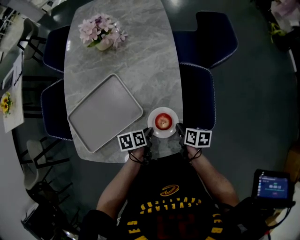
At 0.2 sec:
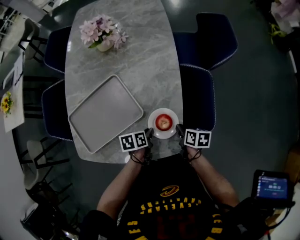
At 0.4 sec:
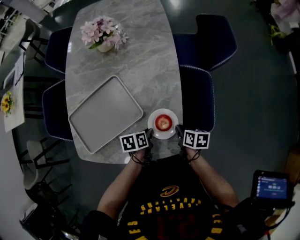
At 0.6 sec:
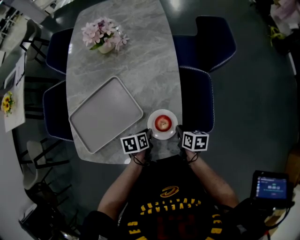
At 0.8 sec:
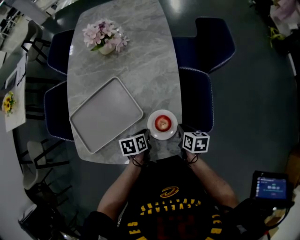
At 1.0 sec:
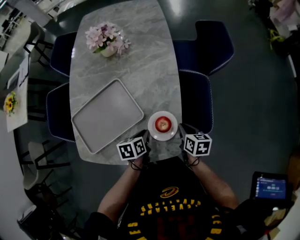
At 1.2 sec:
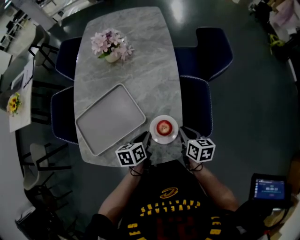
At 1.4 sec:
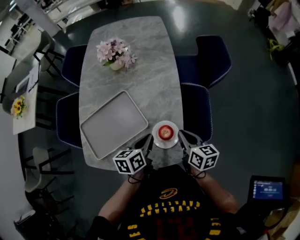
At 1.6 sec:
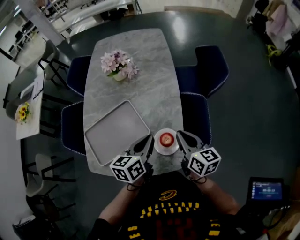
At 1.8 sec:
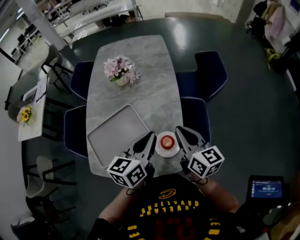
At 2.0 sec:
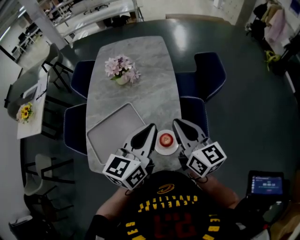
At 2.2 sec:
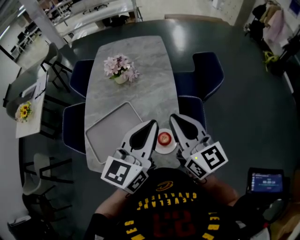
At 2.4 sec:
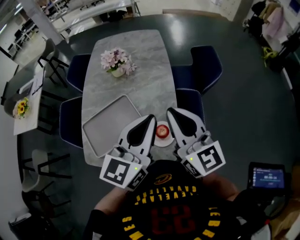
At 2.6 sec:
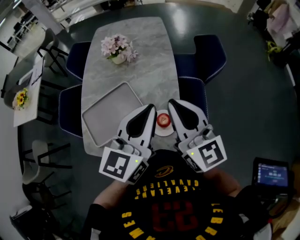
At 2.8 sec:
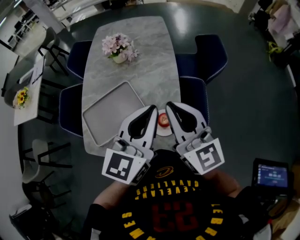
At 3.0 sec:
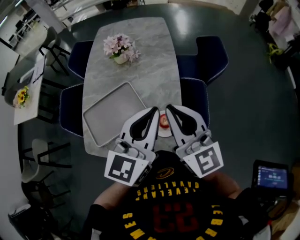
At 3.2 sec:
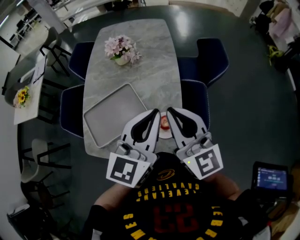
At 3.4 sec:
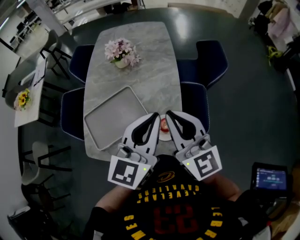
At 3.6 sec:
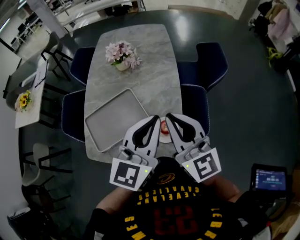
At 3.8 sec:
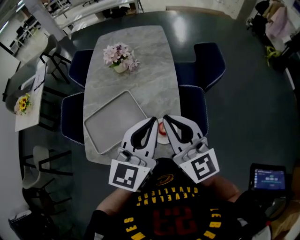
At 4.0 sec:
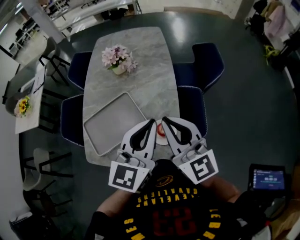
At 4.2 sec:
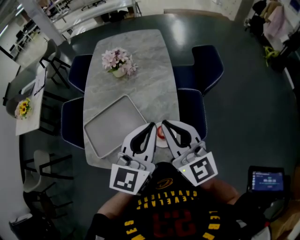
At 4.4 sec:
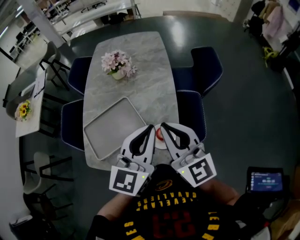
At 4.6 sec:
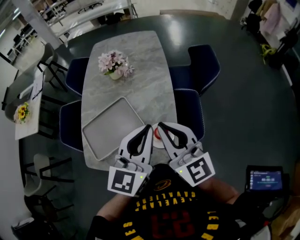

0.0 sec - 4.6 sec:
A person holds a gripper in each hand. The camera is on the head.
0.0 sec - 1.6 sec: Both grippers move upward, about 25 cm. The left gripper rotates some 40 degrees. The right gripper tilts its fingers some 30 degrees upward.
1.6 sec - 3.0 sec: Both grippers travel together upward, some 20 cm. The right gripper rotates roughly 40 degrees; the left gripper swivels roughly 40 degrees.
3.0 sec - 4.6 sec: The grippers make only small movements.

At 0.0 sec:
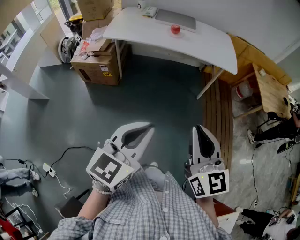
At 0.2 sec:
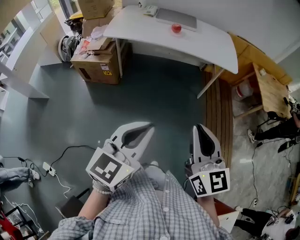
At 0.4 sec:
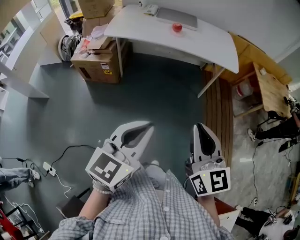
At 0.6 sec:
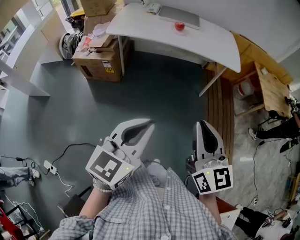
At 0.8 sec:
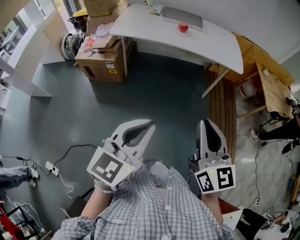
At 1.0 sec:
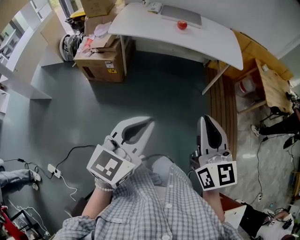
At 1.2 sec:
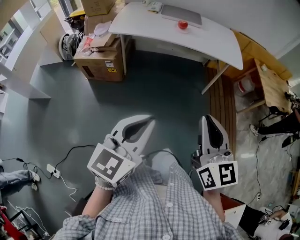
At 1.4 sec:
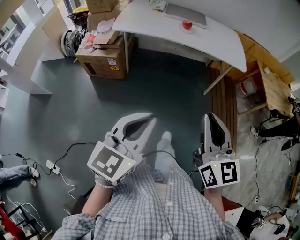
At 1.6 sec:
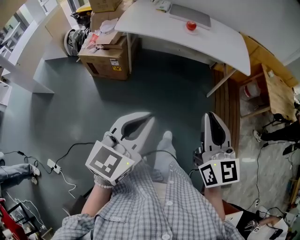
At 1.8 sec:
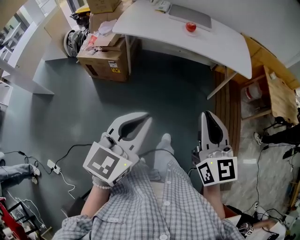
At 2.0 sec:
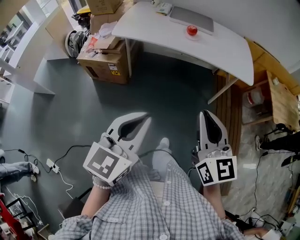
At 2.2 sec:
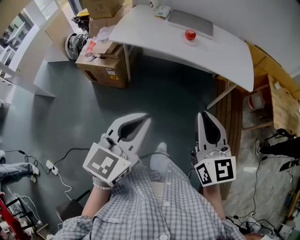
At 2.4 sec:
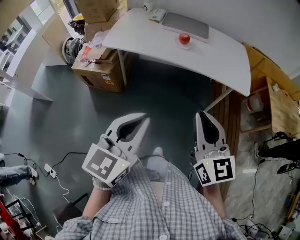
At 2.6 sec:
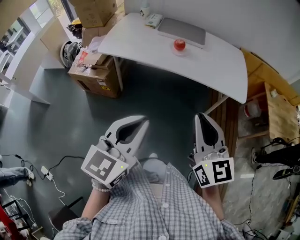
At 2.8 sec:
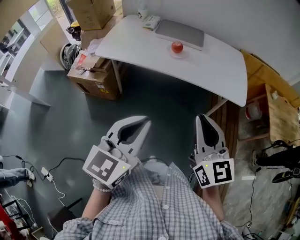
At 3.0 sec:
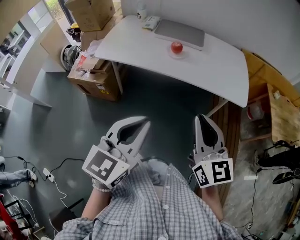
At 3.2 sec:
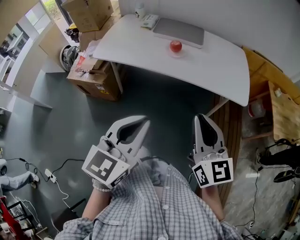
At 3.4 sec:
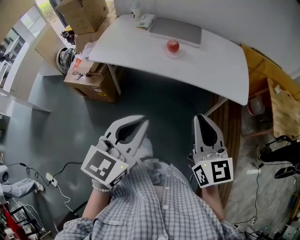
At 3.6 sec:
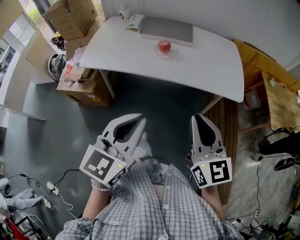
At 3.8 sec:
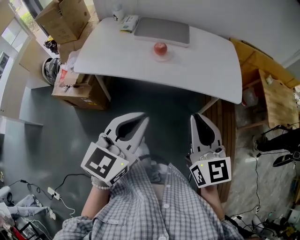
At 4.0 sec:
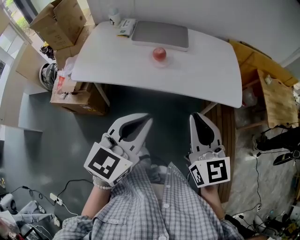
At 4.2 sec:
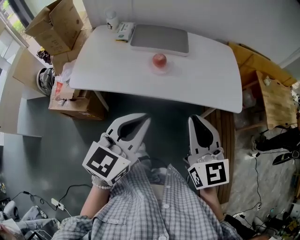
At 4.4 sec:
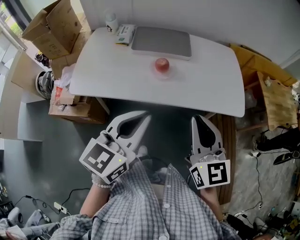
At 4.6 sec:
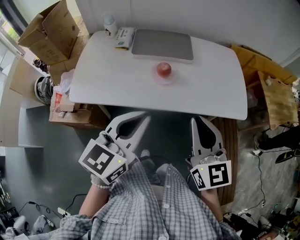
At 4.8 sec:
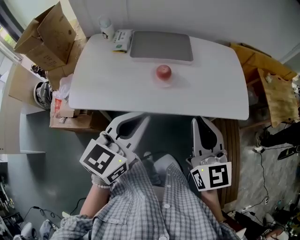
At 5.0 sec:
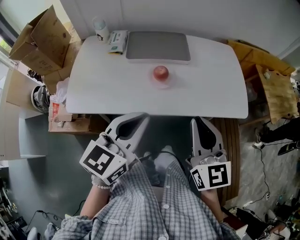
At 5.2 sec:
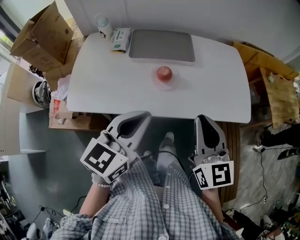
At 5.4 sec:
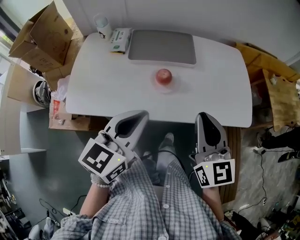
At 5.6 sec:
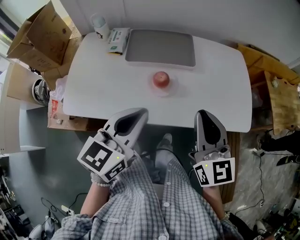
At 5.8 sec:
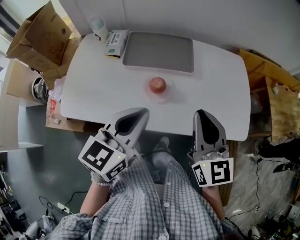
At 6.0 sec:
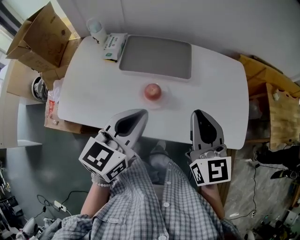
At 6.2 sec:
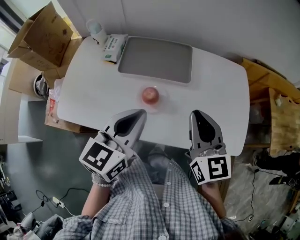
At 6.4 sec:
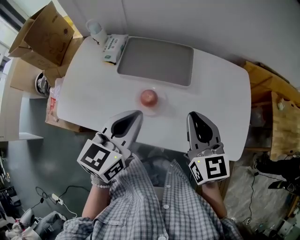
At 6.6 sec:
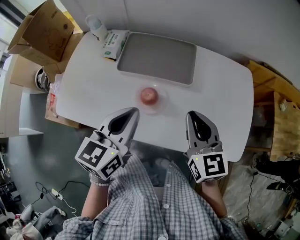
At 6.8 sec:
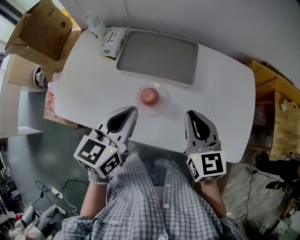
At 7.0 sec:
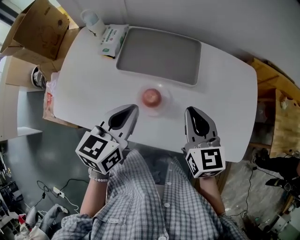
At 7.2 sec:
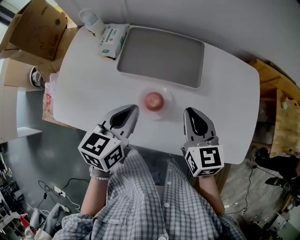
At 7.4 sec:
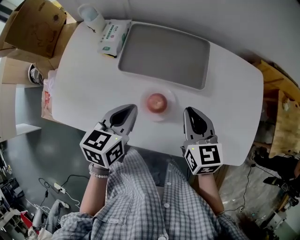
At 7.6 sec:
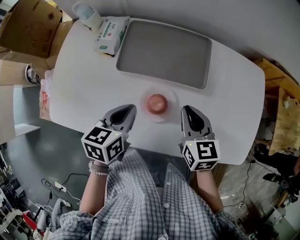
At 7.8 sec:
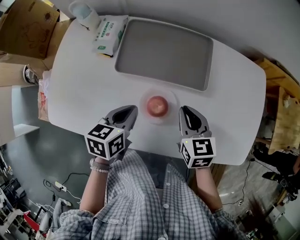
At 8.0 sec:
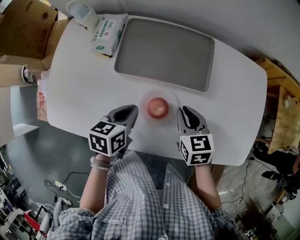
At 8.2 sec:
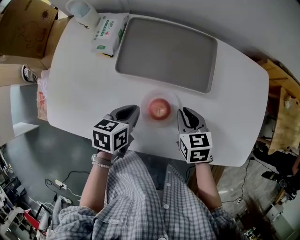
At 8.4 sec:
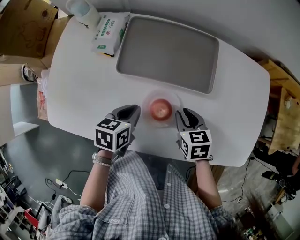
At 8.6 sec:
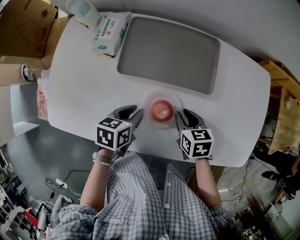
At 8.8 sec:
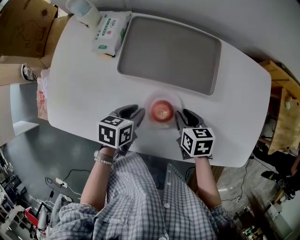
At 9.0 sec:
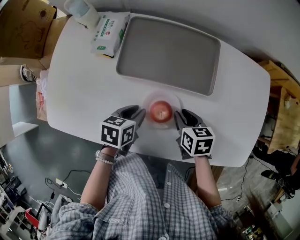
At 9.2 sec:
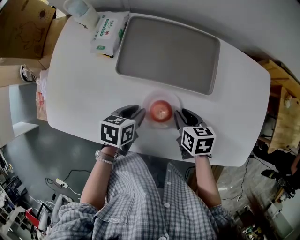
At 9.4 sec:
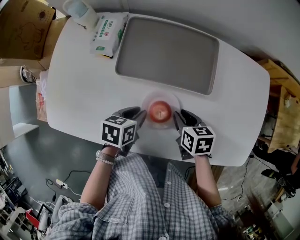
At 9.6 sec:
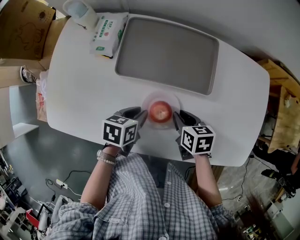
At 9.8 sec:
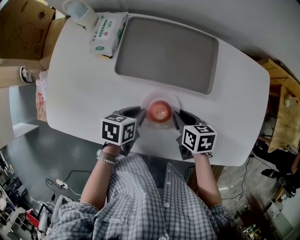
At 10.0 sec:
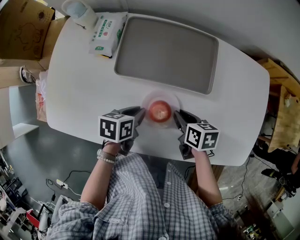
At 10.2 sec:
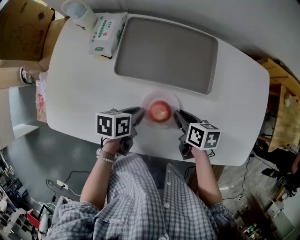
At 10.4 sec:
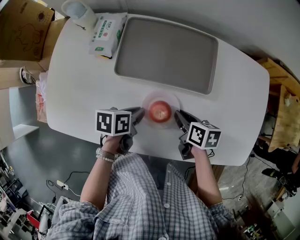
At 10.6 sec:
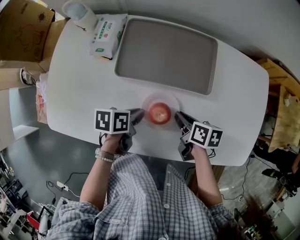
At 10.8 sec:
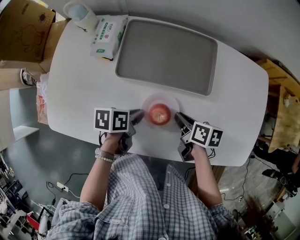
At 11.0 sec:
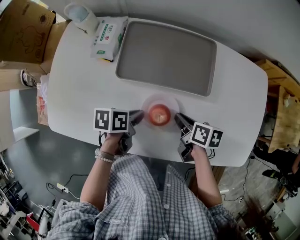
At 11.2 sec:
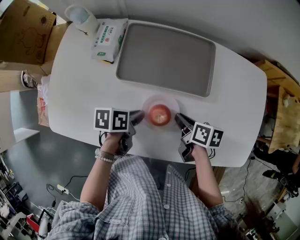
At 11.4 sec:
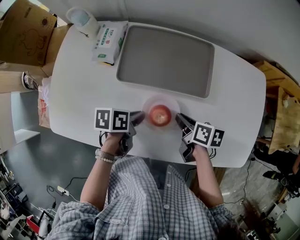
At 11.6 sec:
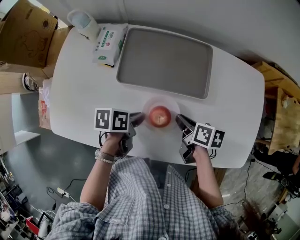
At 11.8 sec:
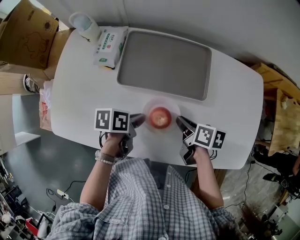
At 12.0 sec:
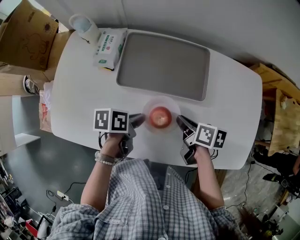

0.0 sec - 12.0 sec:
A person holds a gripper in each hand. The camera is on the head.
0.0 sec - 1.6 sec: The two grippers go roughly 10 cm to the left.
1.6 sec - 3.0 sec: Both grippers move forward and to the right, some 25 cm.
3.0 sec - 4.4 sec: The grippers both shift forward by approximately 20 cm.
4.4 sec - 6.0 sec: Both grippers travel together forward, some 20 cm.
6.0 sec - 7.6 sec: The two grippers go roughly 20 cm downward and forward. The left gripper rotates roughly 30 degrees. Meanwhile the right gripper changes its angle by roughly 30 degrees.
7.6 sec - 9.0 sec: Both grippers move downward, approximately 10 cm. The left gripper opens, while the right gripper rotates some 30 degrees.
9.0 sec - 10.4 sec: There are only small adjustments of the grippers.
10.4 sec - 12.0 sec: There are only small adjustments of the grippers.

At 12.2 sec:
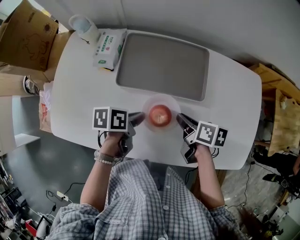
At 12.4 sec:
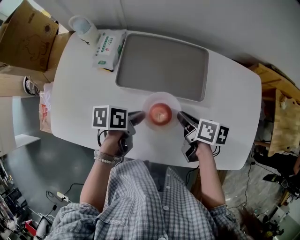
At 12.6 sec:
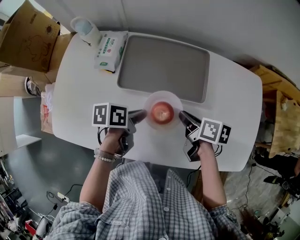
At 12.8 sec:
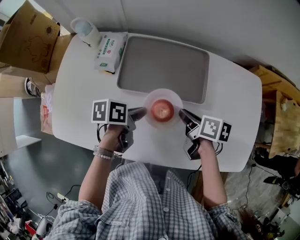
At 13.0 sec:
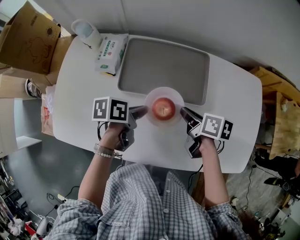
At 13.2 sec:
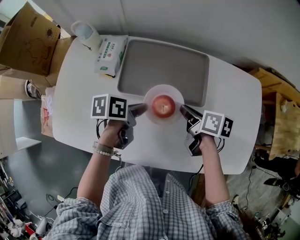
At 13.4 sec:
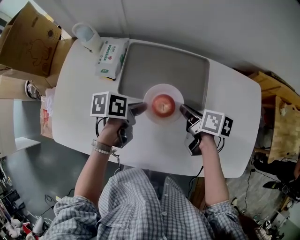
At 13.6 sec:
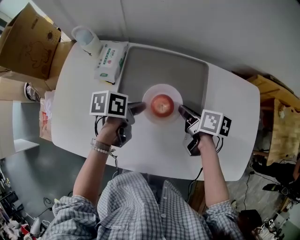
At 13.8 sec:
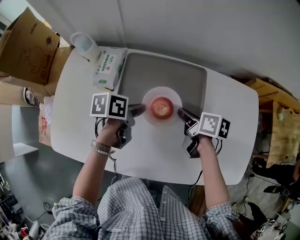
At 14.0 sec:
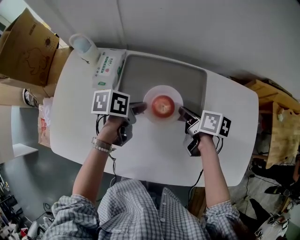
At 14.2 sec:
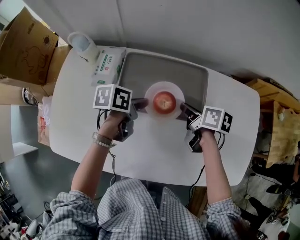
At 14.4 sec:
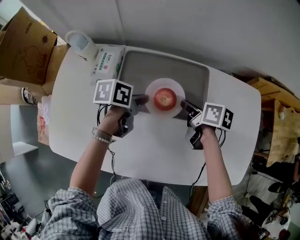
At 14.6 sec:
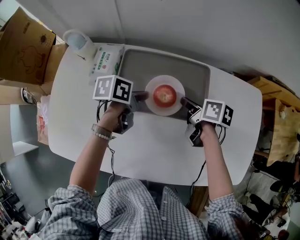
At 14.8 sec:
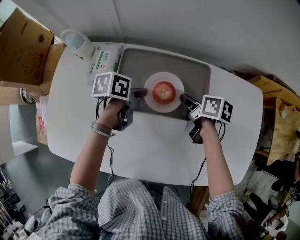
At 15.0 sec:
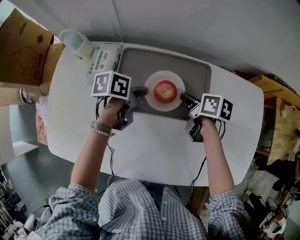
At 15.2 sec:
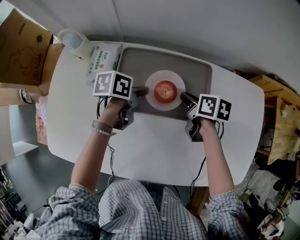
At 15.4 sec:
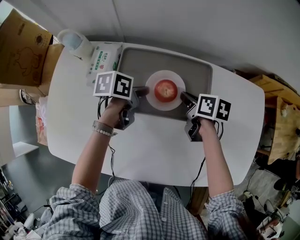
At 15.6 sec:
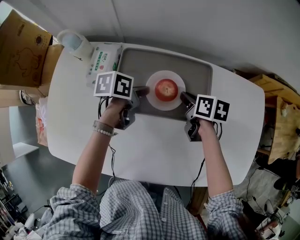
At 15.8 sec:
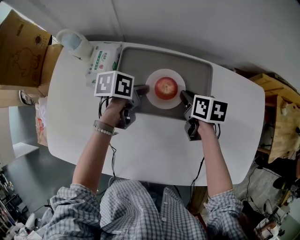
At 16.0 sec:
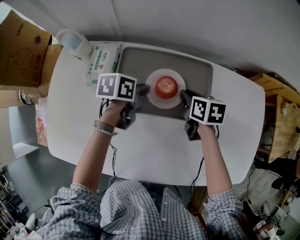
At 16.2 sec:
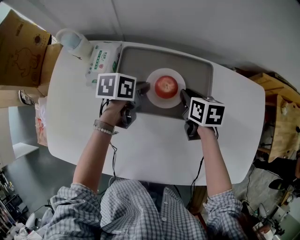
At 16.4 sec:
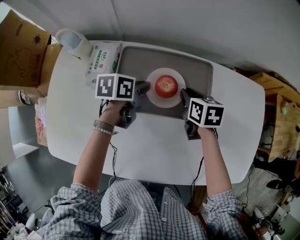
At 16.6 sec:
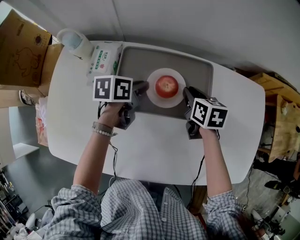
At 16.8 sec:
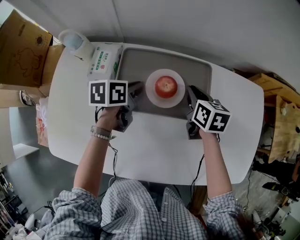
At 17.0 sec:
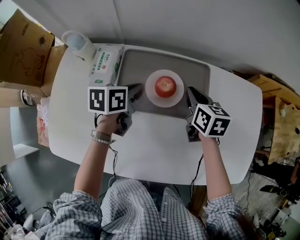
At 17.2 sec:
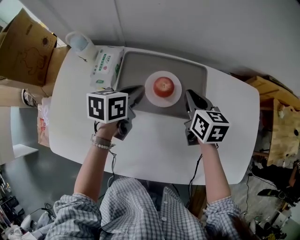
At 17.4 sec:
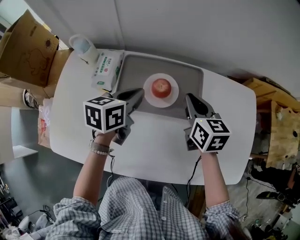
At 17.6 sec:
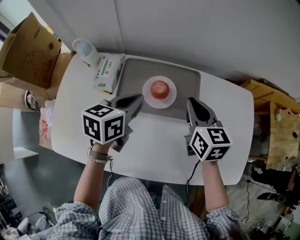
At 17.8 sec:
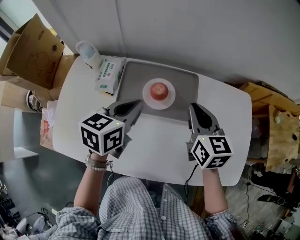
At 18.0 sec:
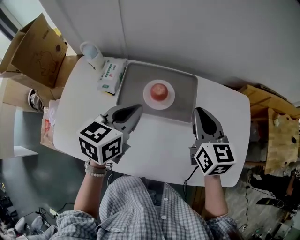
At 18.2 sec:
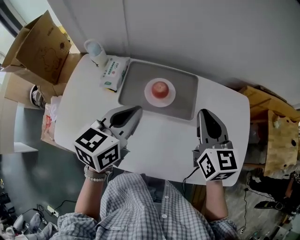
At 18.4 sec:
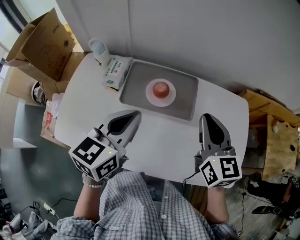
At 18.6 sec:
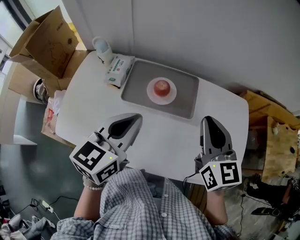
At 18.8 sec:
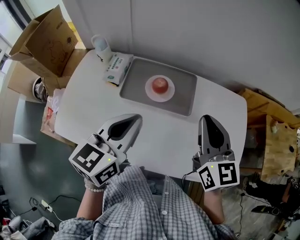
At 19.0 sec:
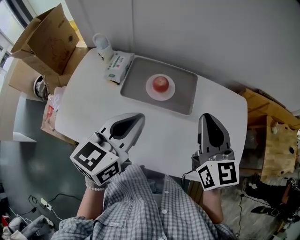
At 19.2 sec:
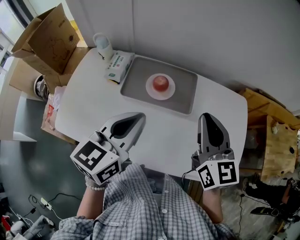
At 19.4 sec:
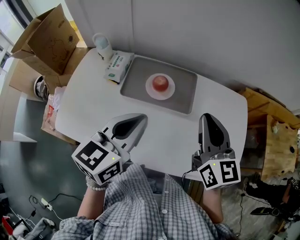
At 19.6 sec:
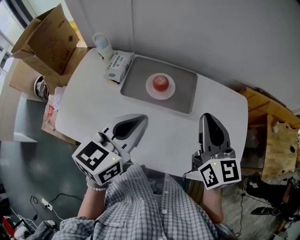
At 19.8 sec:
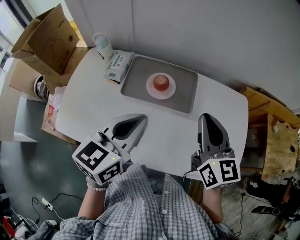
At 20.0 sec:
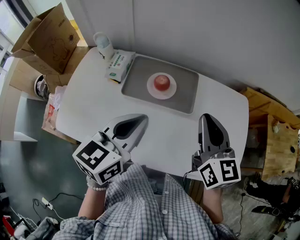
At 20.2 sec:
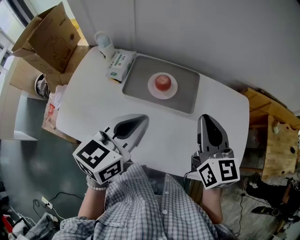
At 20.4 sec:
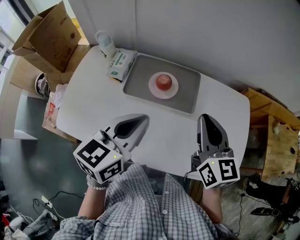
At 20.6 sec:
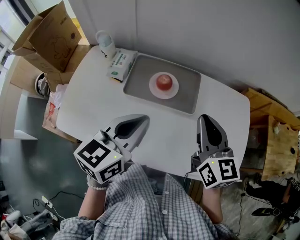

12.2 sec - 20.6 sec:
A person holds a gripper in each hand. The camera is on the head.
12.2 sec - 13.6 sec: Both grippers move forward, some 10 cm.
13.6 sec - 15.0 sec: The two grippers go approximately 10 cm forward.
15.0 sec - 16.4 sec: The right gripper changes its angle by roughly 30 degrees.
16.4 sec - 17.8 sec: The left gripper travels upward and backward by approximately 20 cm, and turns by some 30 degrees; the right gripper travels upward by some 20 cm, and turns by some 30 degrees.
17.8 sec - 19.2 sec: The left gripper is displaced backward and upward by roughly 15 cm. Meanwhile the right gripper moves upward and backward, roughly 15 cm.
19.2 sec - 20.6 sec: The grippers move only a little.
